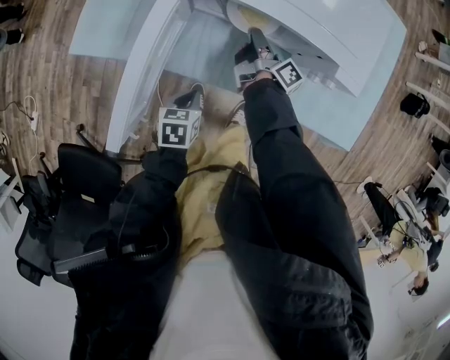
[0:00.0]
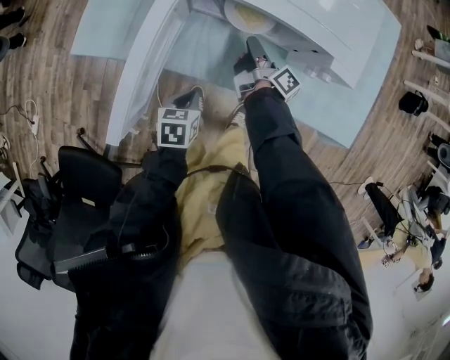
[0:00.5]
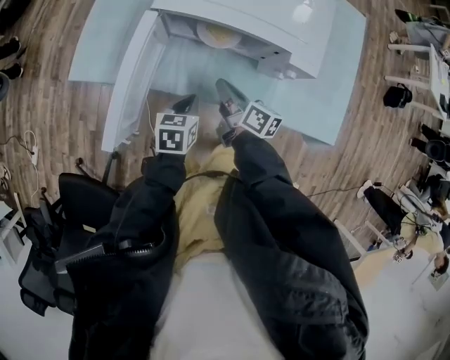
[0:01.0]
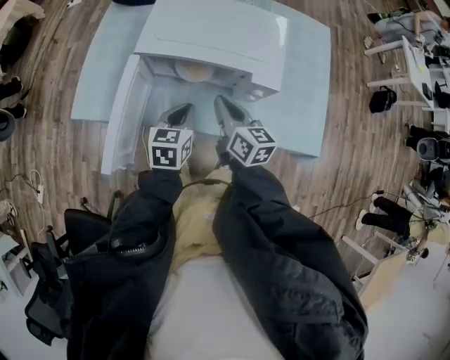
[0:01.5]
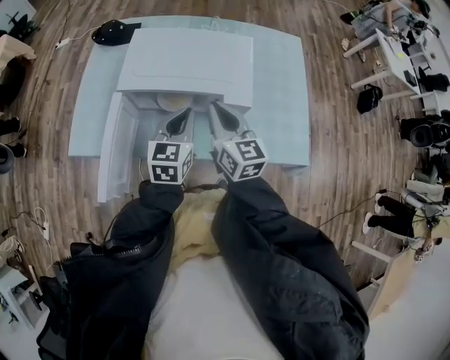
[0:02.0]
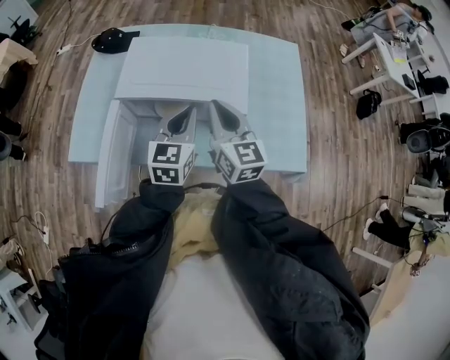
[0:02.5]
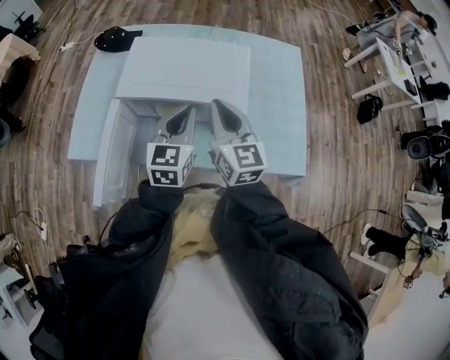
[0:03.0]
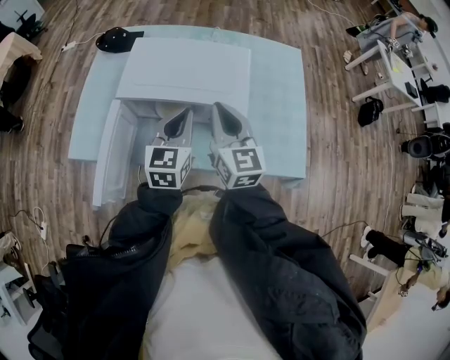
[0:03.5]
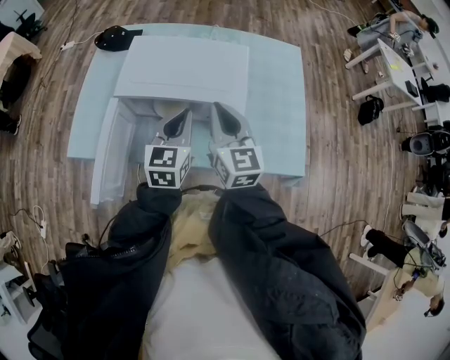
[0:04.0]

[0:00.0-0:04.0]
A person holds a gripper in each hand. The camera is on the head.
0:00.0 to 0:02.0: The left gripper moves upward, to the right and forward, some 35 cm, and tilts its fingers approximately 40 degrees upward. Meanwhile the right gripper goes roughly 30 cm upward, and rolls counterclockwise, seen from behind, by about 70 degrees.
0:02.0 to 0:04.0: The grippers make only small movements.

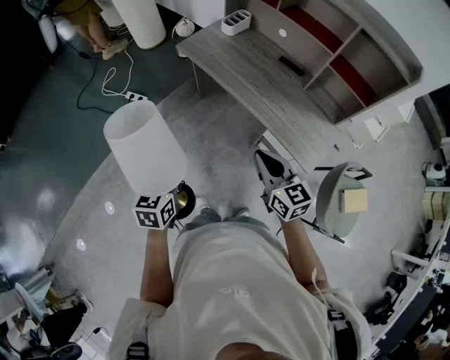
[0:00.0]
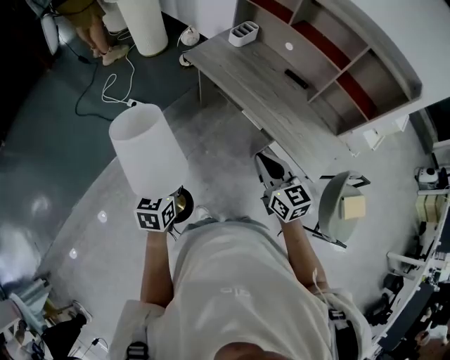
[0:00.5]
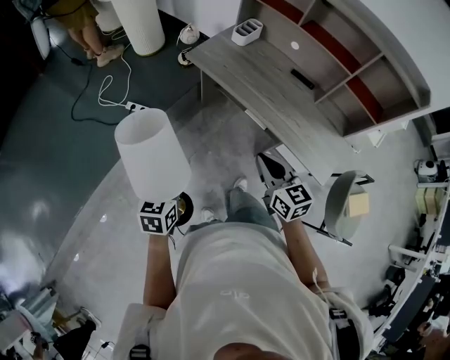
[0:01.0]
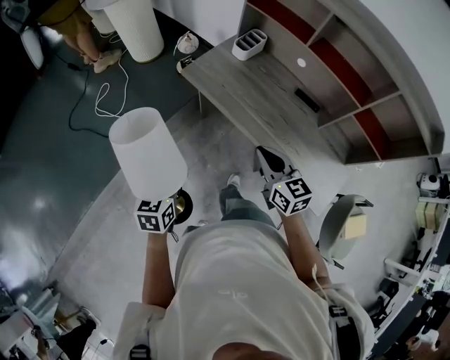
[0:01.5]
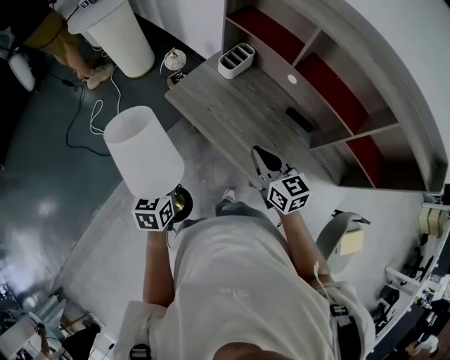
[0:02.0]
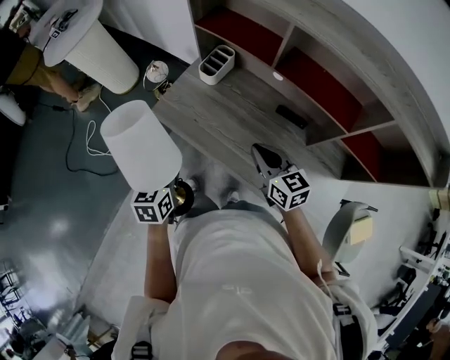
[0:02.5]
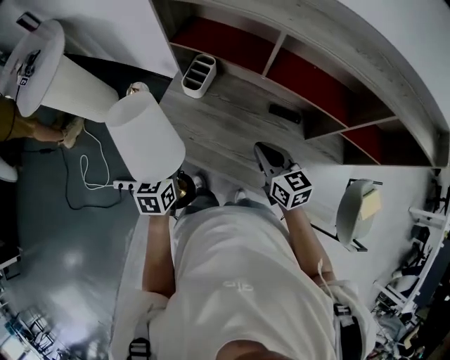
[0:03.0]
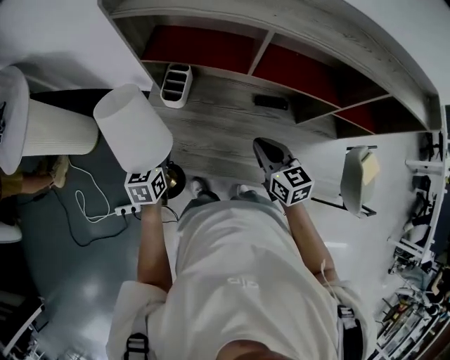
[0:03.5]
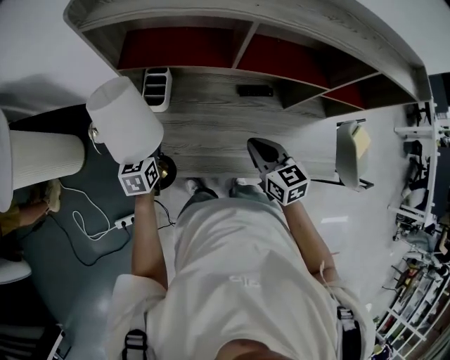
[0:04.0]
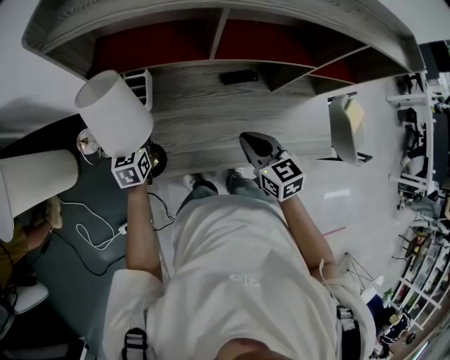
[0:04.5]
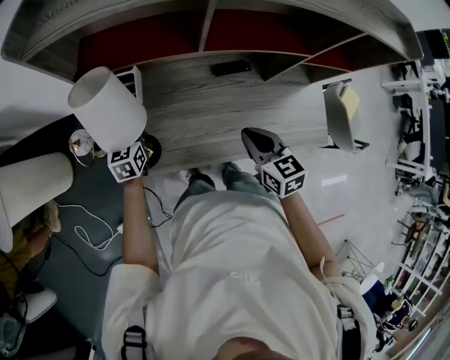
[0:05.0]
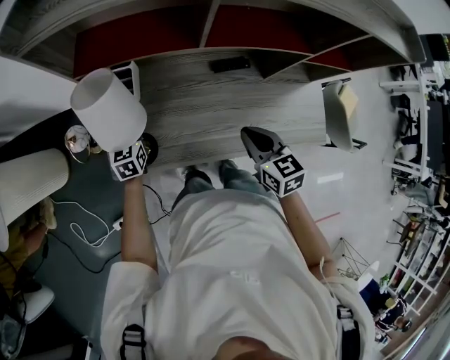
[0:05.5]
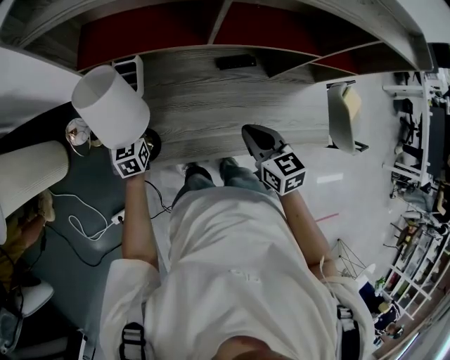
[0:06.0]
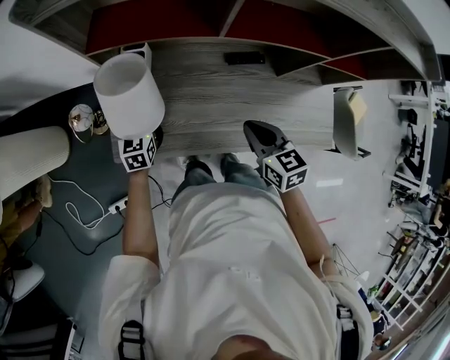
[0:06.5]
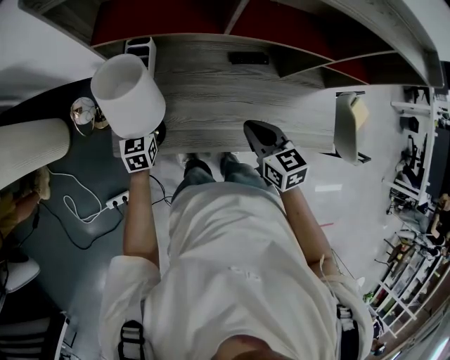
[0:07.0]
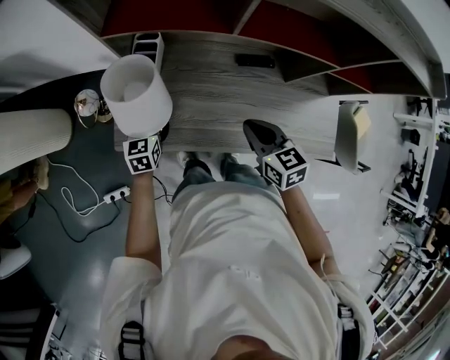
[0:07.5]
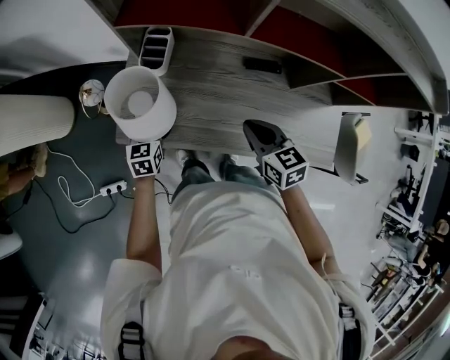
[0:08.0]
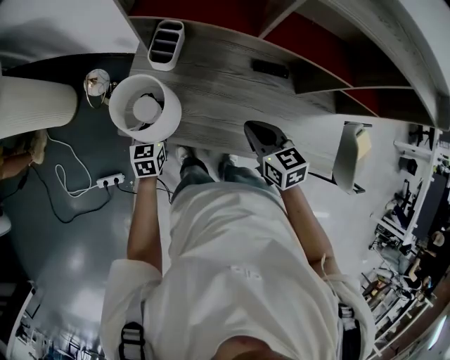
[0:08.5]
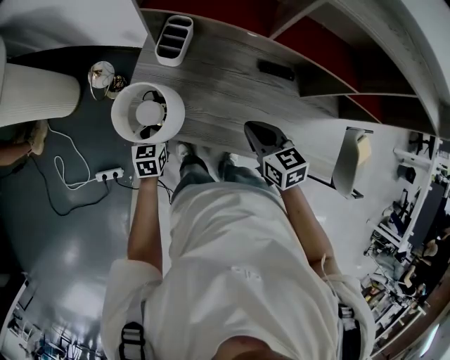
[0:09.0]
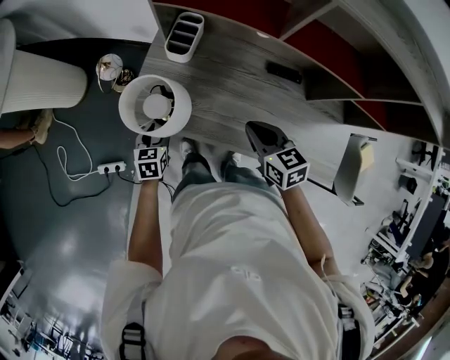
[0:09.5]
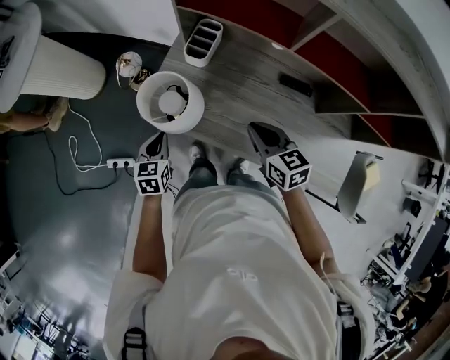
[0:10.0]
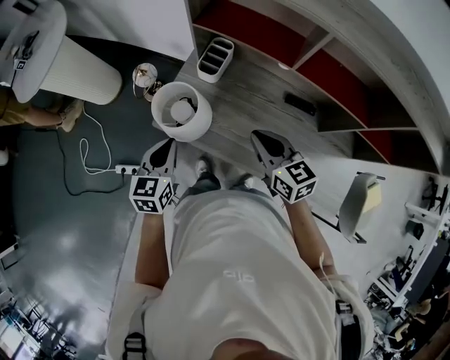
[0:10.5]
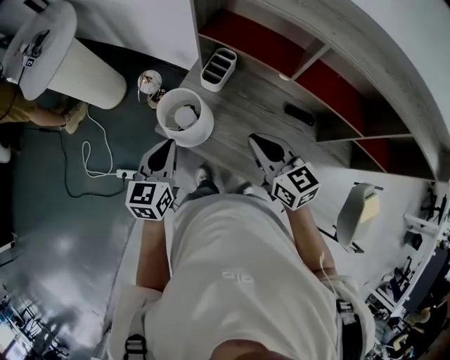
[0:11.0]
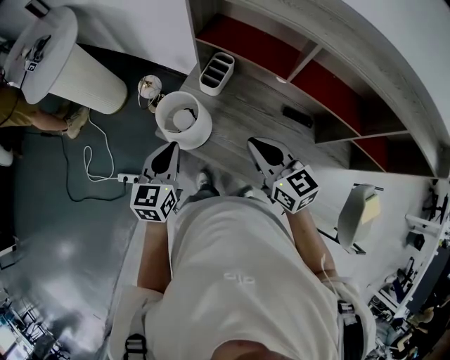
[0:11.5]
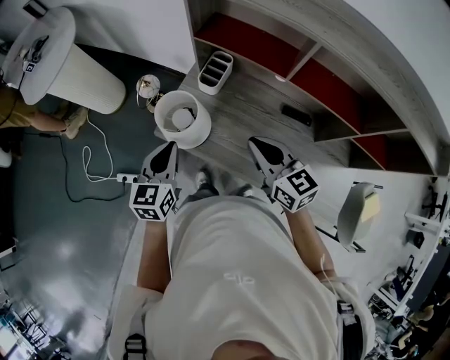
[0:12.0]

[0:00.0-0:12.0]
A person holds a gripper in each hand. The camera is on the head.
0:00.0 to 0:02.0: Both grippers travel together forward, roughly 35 cm.
0:02.0 to 0:04.0: The right gripper ends up approximately 15 cm from where it was, and rotates roughly 40 degrees. The left gripper changes place by about 40 cm, and swivels about 40 degrees.
0:04.0 to 0:06.0: The left gripper shifts roughly 10 cm downward and forward.
0:06.0 to 0:08.0: The left gripper is displaced backward by some 10 cm, and opens up.
0:08.0 to 0:10.0: The left gripper moves backward and to the left, about 15 cm, and closes; the right gripper goes approximately 5 cm to the left.
0:10.0 to 0:12.0: The left gripper moves upward, about 20 cm; the right gripper heads upward, covering approximately 10 cm.

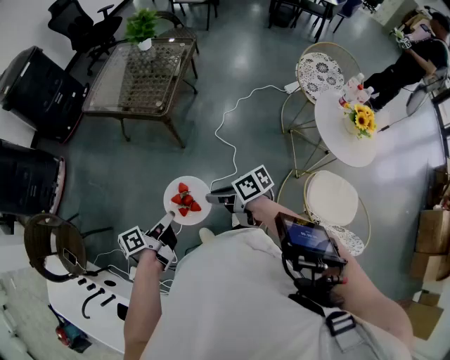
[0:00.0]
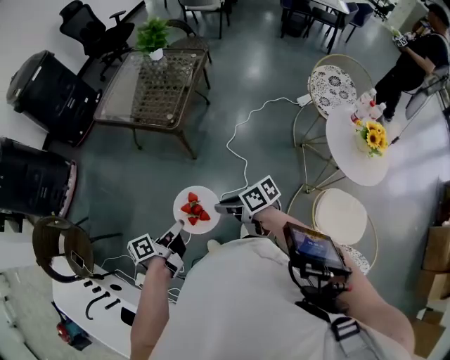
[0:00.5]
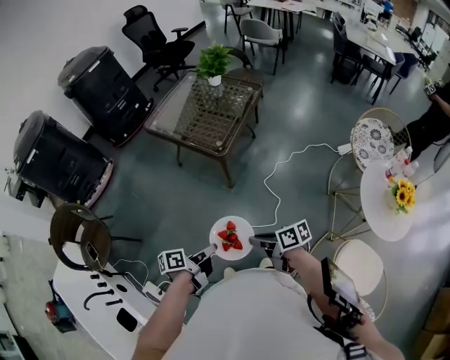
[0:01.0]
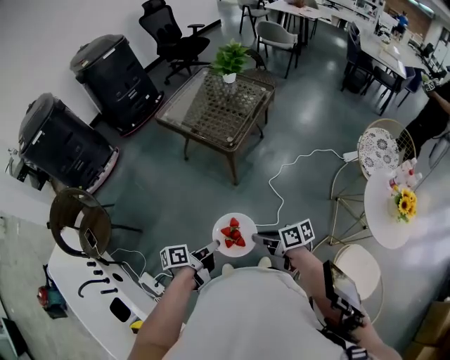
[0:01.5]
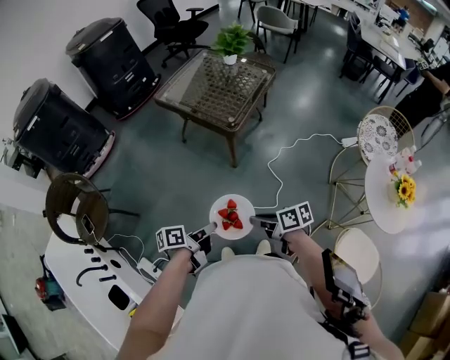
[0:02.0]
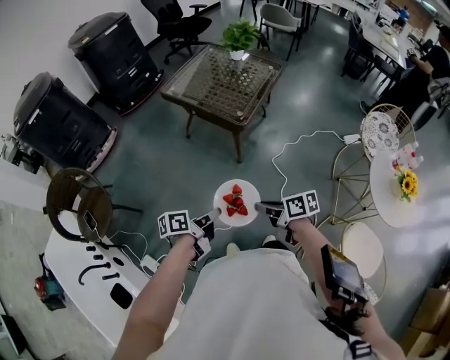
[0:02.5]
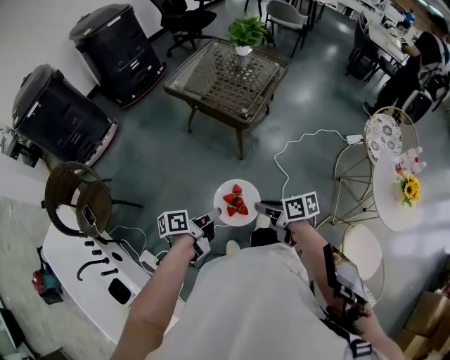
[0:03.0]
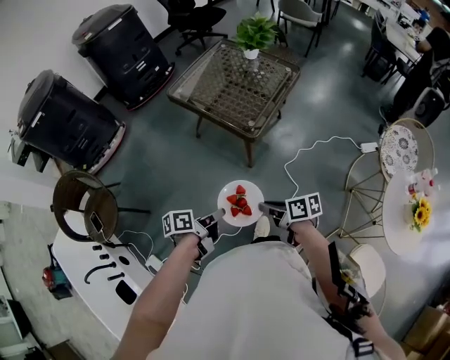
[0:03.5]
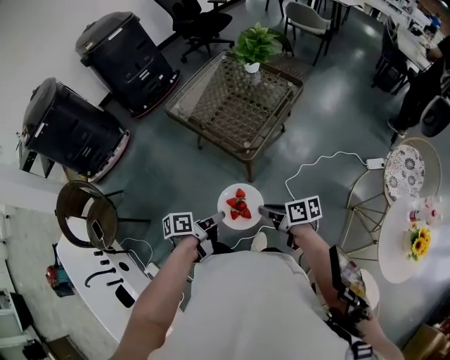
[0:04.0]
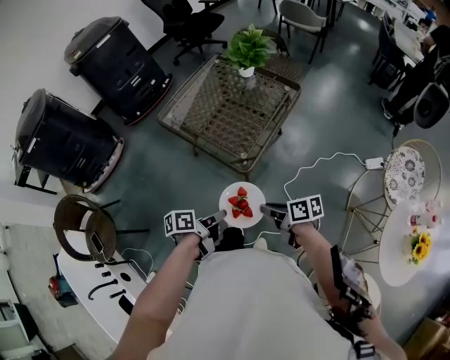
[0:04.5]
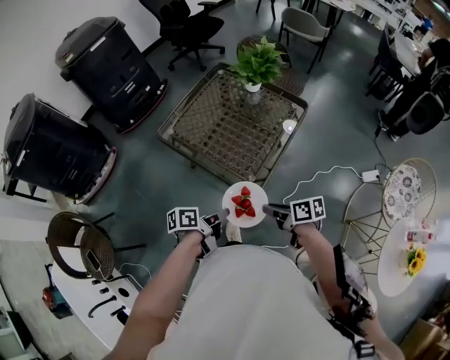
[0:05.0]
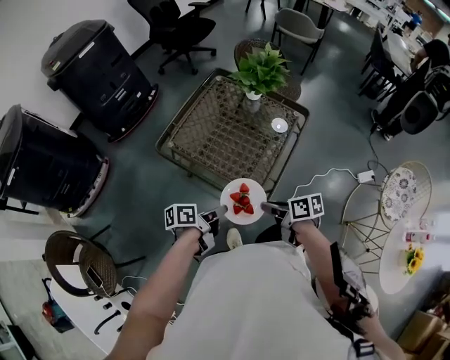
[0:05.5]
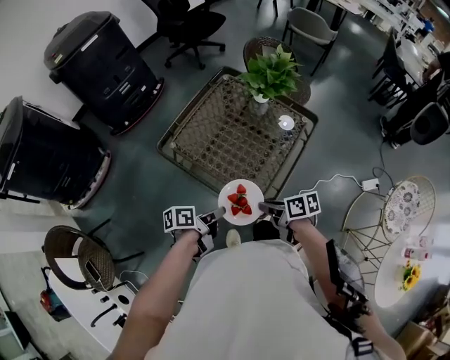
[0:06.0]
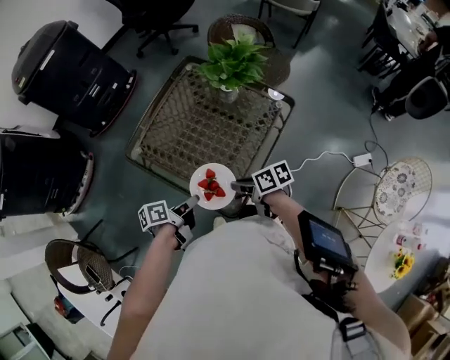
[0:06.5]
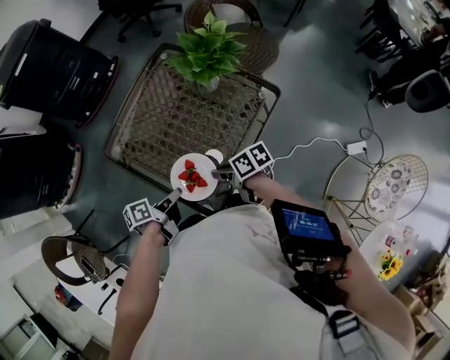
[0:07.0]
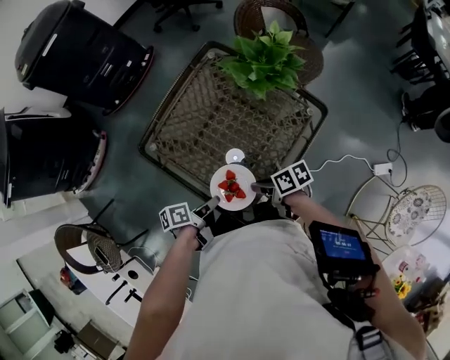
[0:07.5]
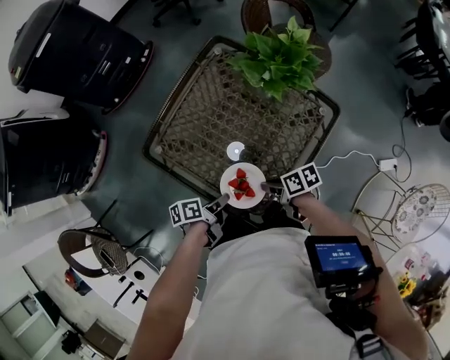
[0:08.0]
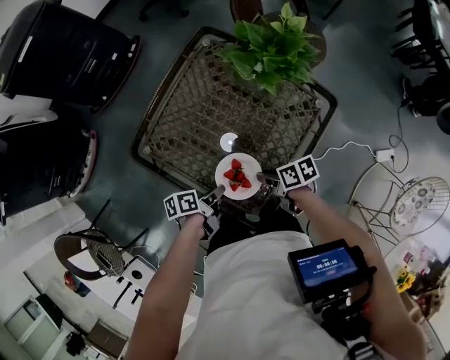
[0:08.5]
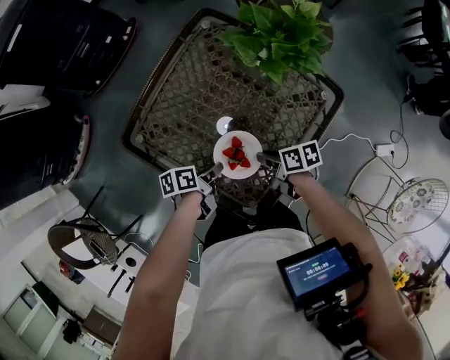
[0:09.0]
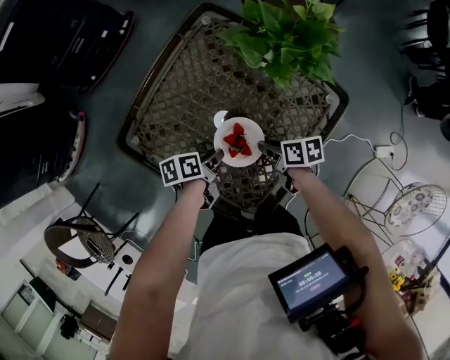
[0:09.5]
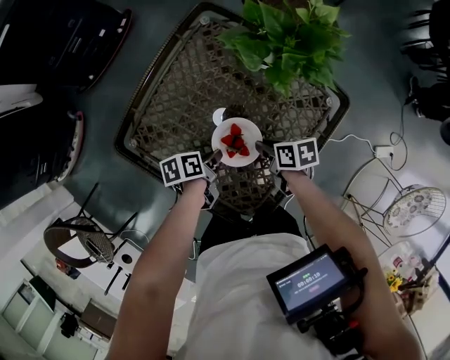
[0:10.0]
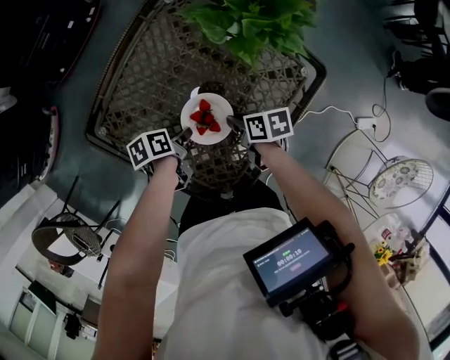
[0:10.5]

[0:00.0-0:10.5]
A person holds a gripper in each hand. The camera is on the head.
0:02.0 to 0:04.0: The right gripper ends up roughly 25 cm from where it was.
0:04.0 to 0:06.5: The right gripper moves roughly 40 cm.
0:06.5 to 0:08.5: The right gripper is displaced downward by approximately 10 cm.
0:08.5 to 0:10.5: The right gripper shifts by approximately 10 cm.
